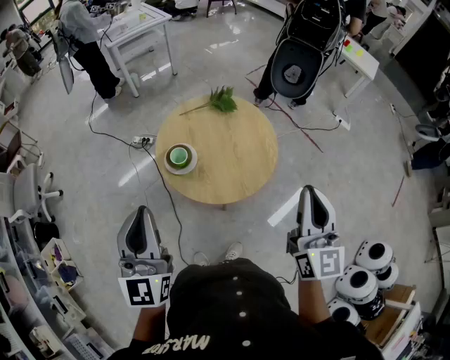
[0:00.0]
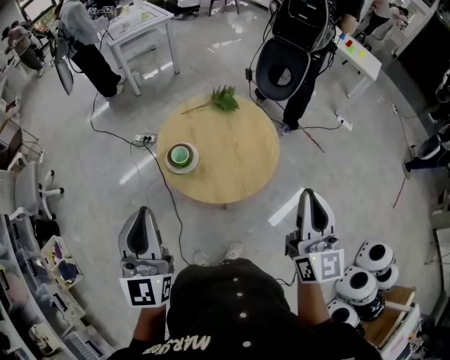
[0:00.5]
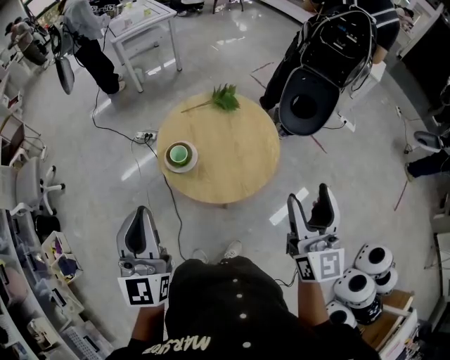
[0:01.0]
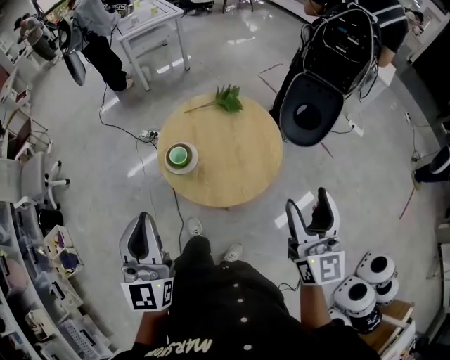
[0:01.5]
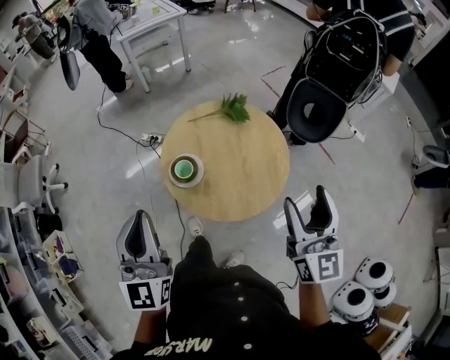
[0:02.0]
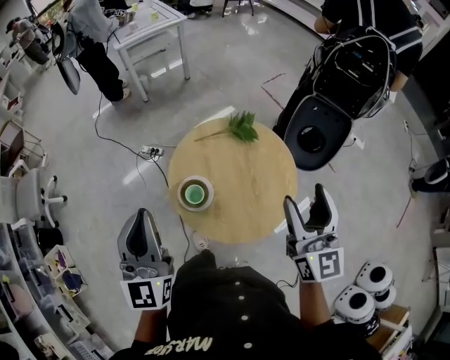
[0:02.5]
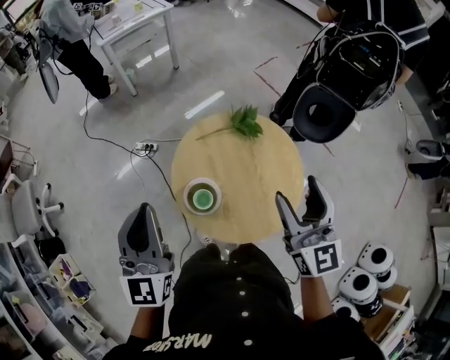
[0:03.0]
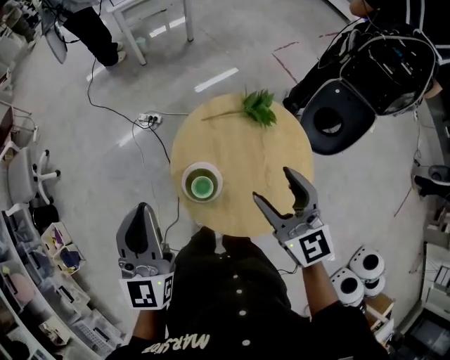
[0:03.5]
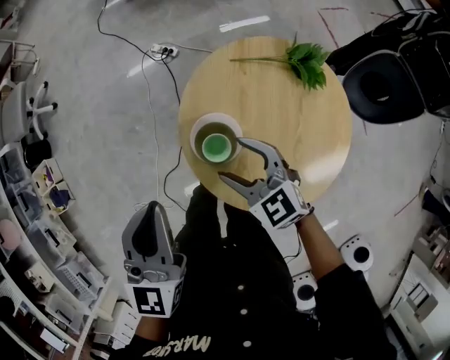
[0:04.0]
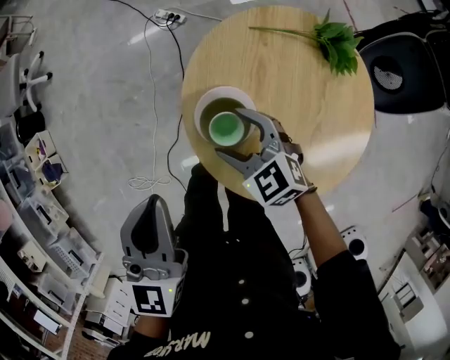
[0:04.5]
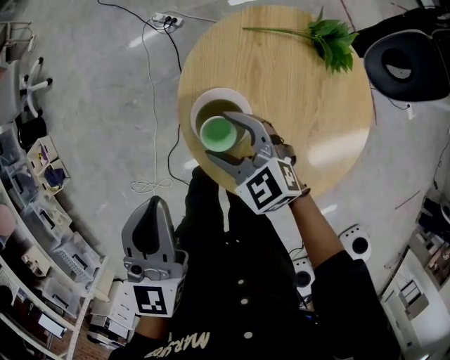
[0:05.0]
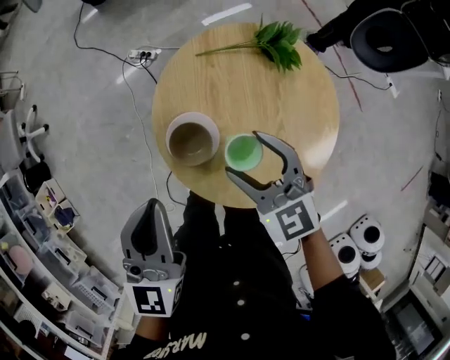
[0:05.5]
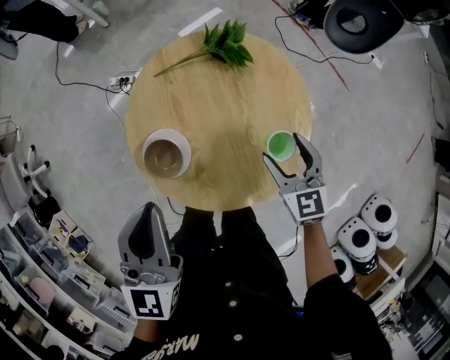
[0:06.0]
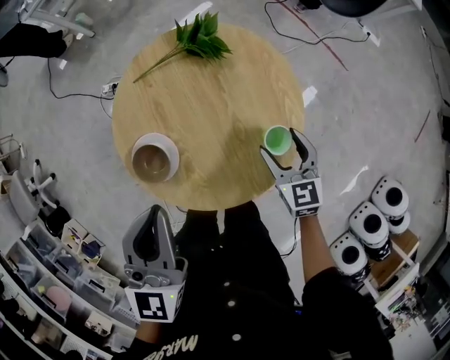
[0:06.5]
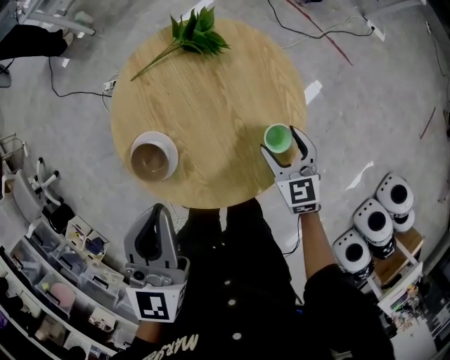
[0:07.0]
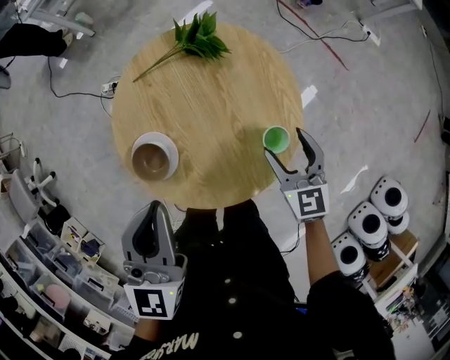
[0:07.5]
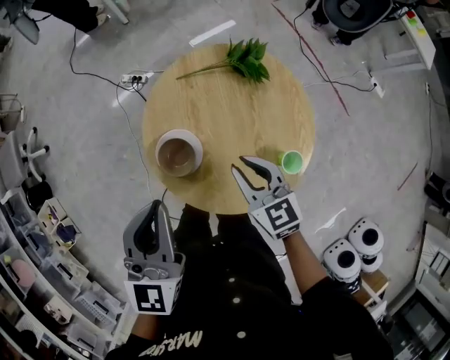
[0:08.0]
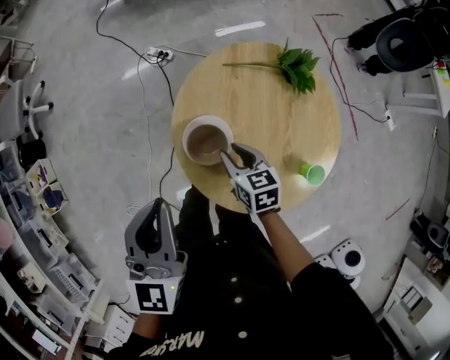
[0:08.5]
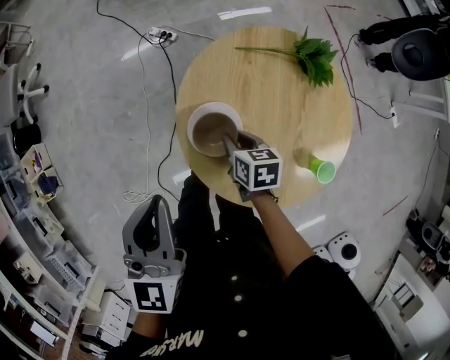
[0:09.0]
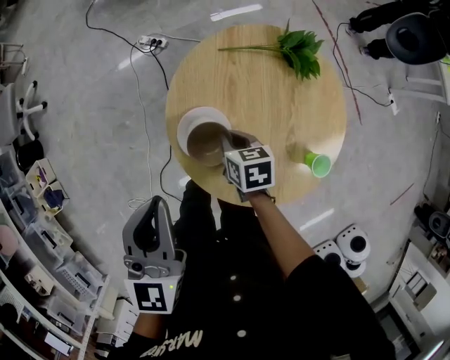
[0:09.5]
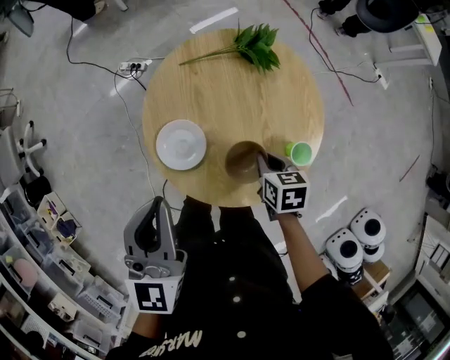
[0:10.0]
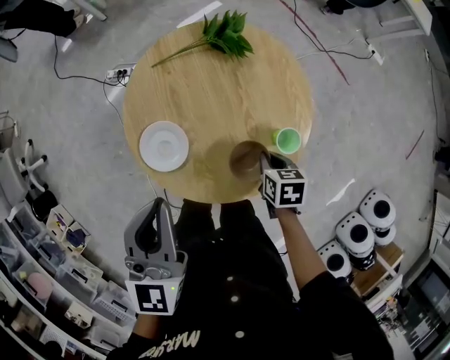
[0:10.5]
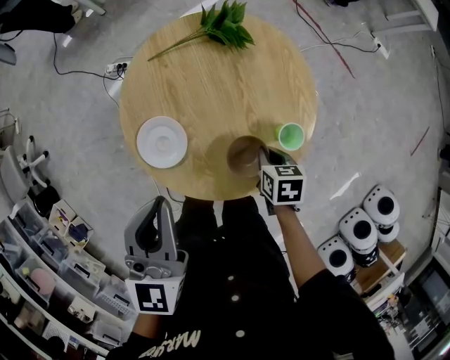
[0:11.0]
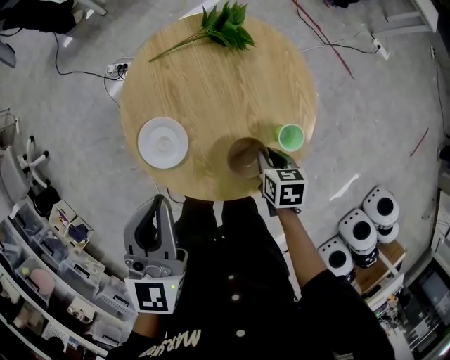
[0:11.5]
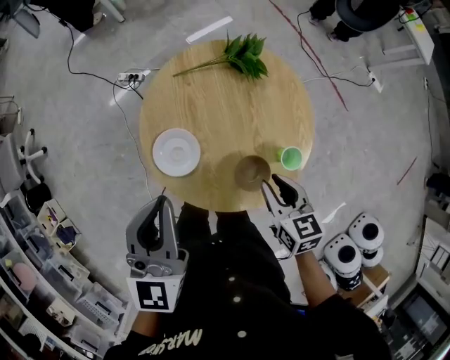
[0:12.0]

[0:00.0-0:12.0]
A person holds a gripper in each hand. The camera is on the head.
0:00.0 to 0:02.0: The two grippers go about 10 cm forward. The right gripper opens.
0:02.0 to 0:04.0: The left gripper changes place by roughly 20 cm, and changes its angle by roughly 20 degrees; the right gripper changes place by approximately 40 cm, and tilts its fingers some 40 degrees downward.
0:04.0 to 0:06.0: The left gripper moves approximately 15 cm, and rotates some 20 degrees, while the right gripper swings up and down, some 10 cm each way, with 2 reversals, and turns by about 50 degrees.
0:06.0 to 0:08.0: The left gripper goes to the right and returns, some 5 cm each way, while the right gripper travels to the left by approximately 15 cm, changes its angle by some 20 degrees, and closes up.
0:08.0 to 0:10.0: The right gripper shifts approximately 10 cm downward, reaches some 10 cm to the left, then returns, and turns by approximately 40 degrees. The left gripper reaches roughly 10 cm to the left, then returns.
0:10.0 to 0:12.0: The right gripper shifts some 10 cm upward.

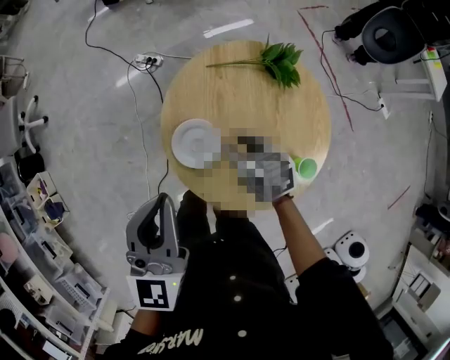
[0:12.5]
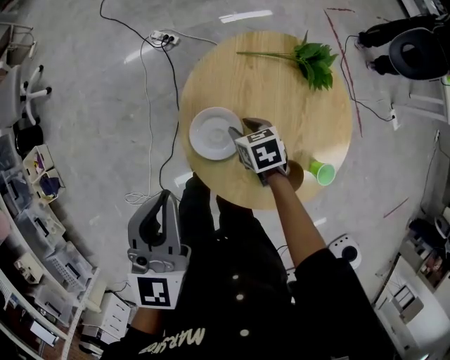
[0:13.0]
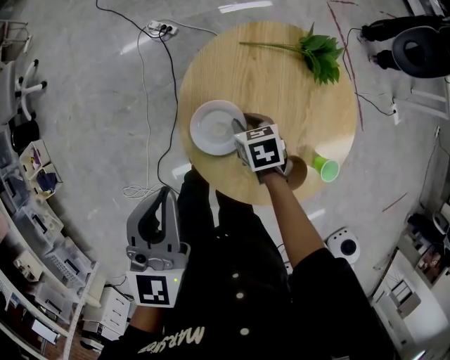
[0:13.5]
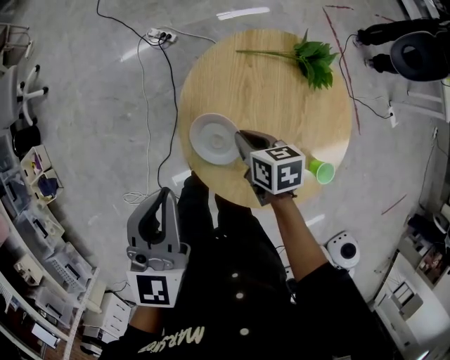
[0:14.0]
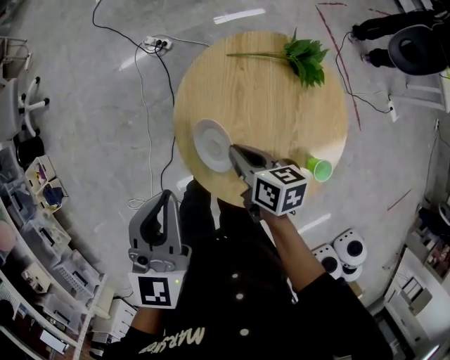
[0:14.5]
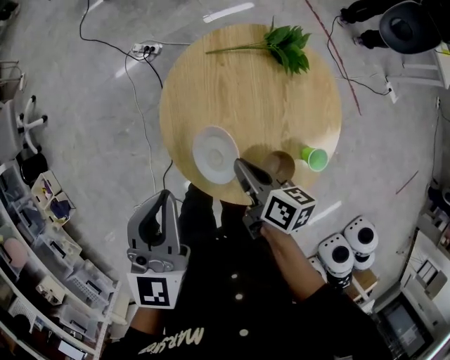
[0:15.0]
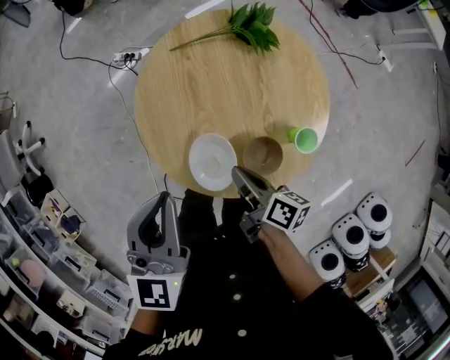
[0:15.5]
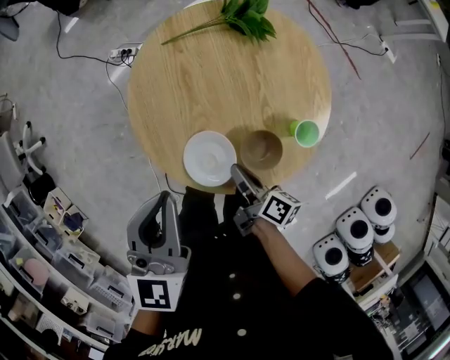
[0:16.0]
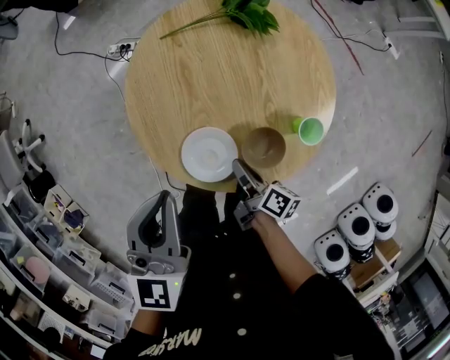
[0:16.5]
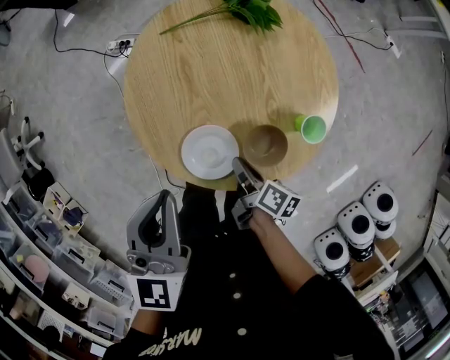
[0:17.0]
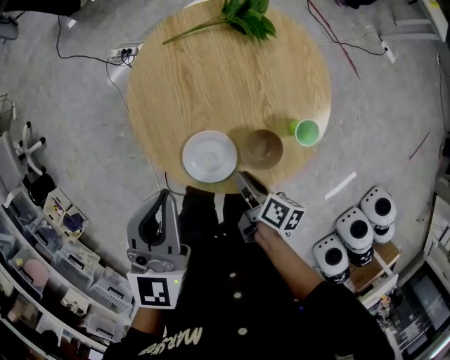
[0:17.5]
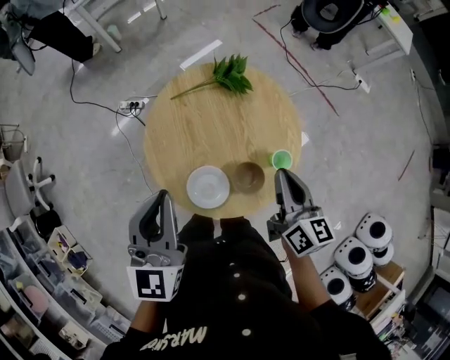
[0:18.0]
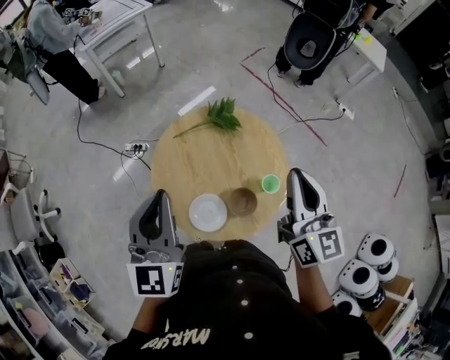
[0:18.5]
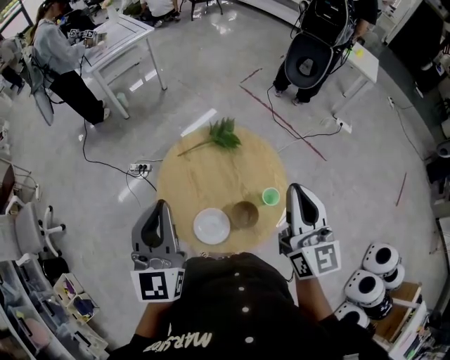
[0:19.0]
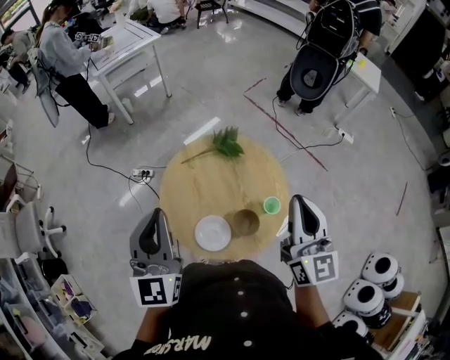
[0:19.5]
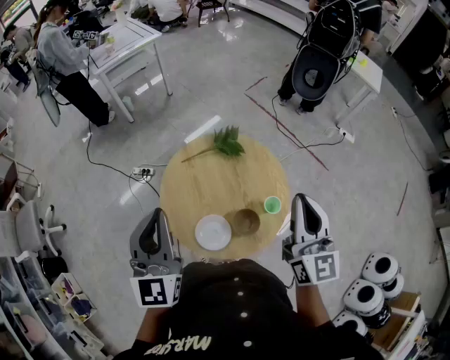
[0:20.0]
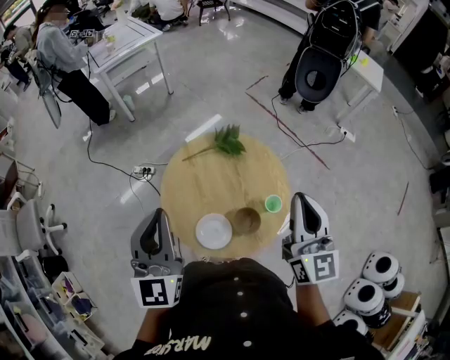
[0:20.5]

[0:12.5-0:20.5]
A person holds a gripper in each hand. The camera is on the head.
0:12.5 to 0:14.5: The right gripper goes downward and returns, roughly 10 cm each way, and turns by roughly 20 degrees.
0:14.5 to 0:16.5: The right gripper goes some 20 cm backward, downward and to the right, and rolls clockwise, seen from behind, by roughly 40 degrees, while the left gripper goes some 10 cm to the right.
0:16.5 to 0:18.5: The right gripper shifts roughly 40 cm upward, and rolls counterclockwise, seen from behind, by roughly 60 degrees. Meanwhile the left gripper is displaced upward by approximately 20 cm, and swivels some 20 degrees.
0:18.5 to 0:20.5: The grippers make only small movements.

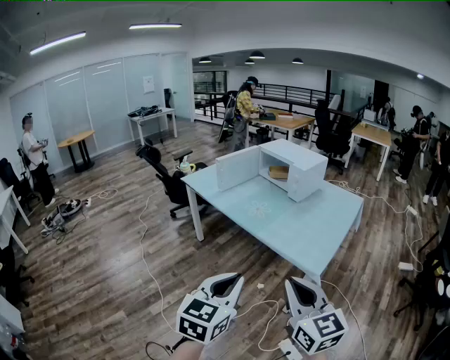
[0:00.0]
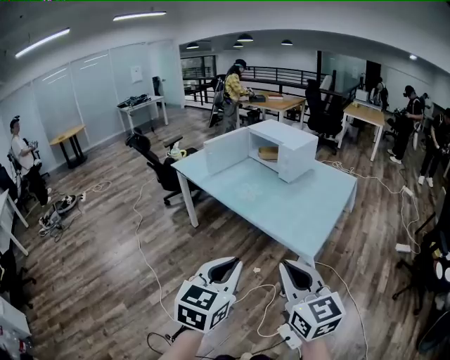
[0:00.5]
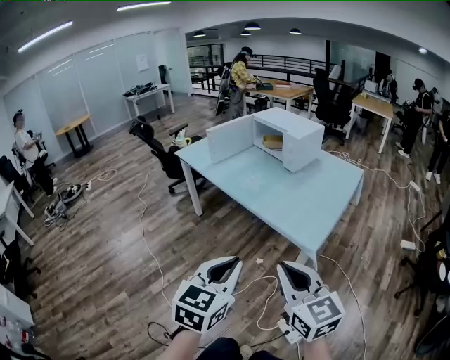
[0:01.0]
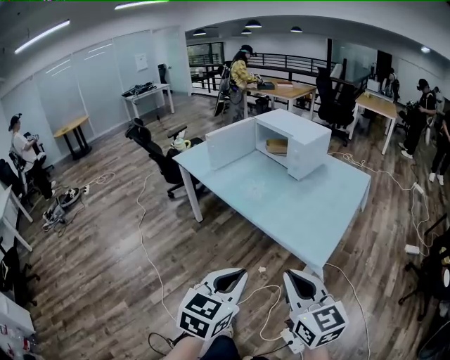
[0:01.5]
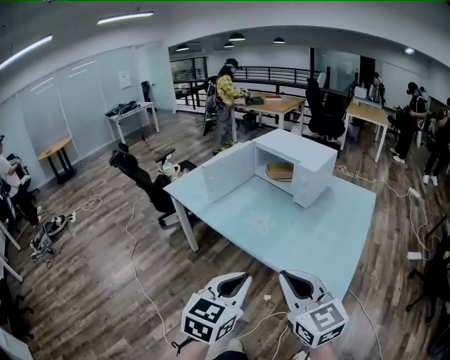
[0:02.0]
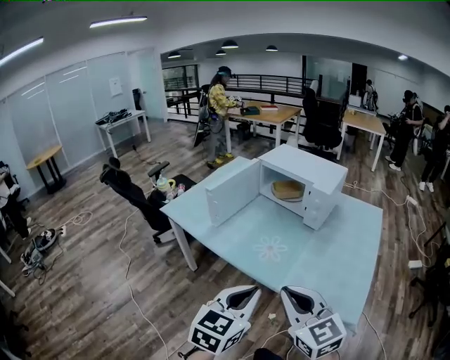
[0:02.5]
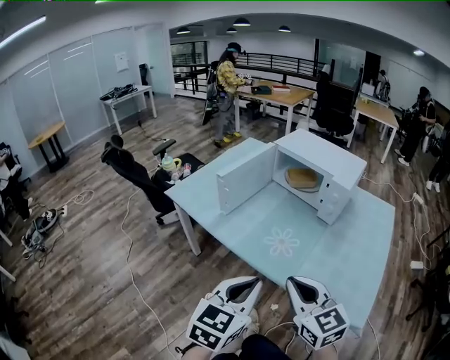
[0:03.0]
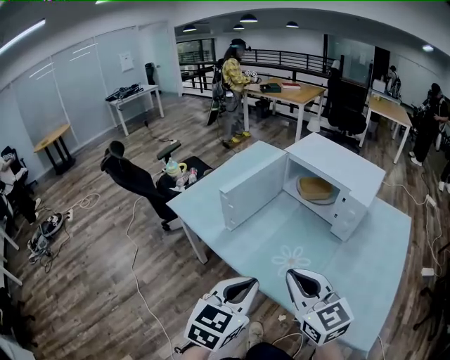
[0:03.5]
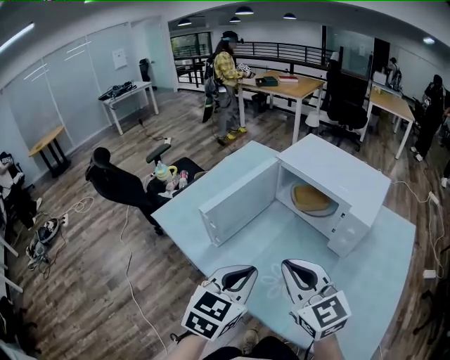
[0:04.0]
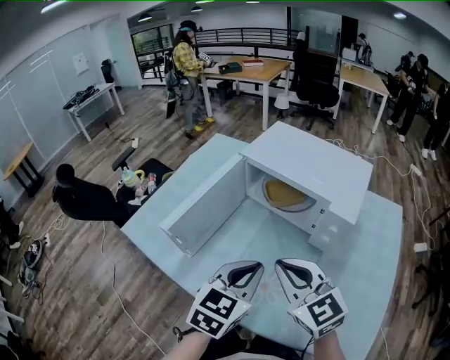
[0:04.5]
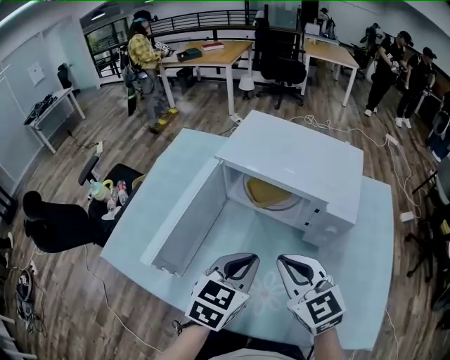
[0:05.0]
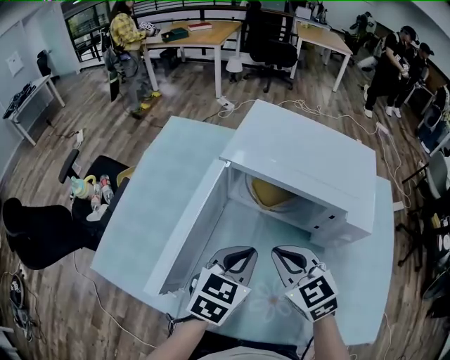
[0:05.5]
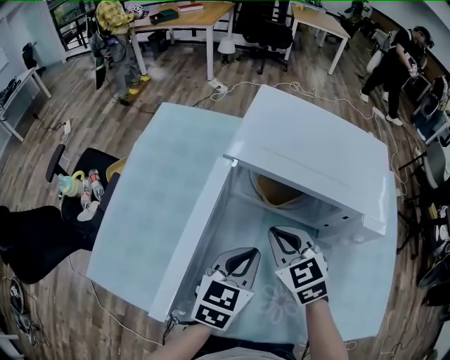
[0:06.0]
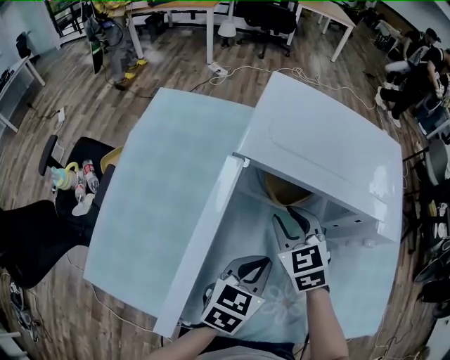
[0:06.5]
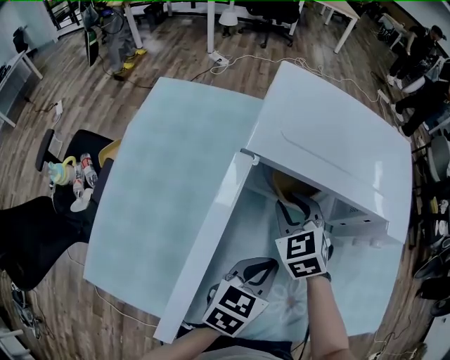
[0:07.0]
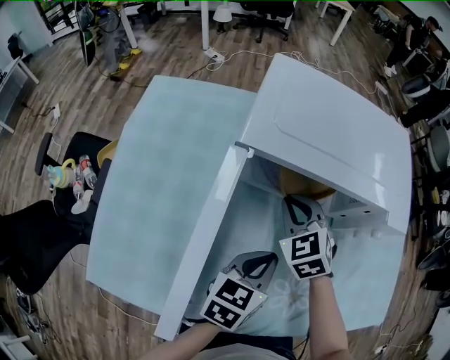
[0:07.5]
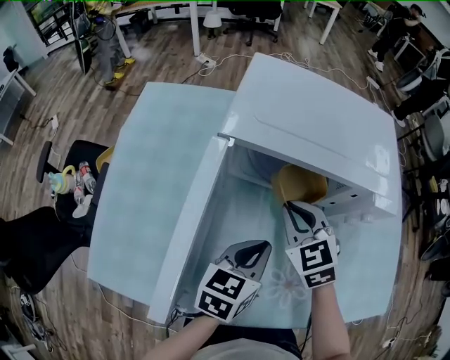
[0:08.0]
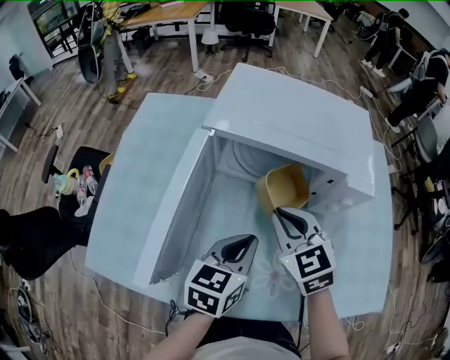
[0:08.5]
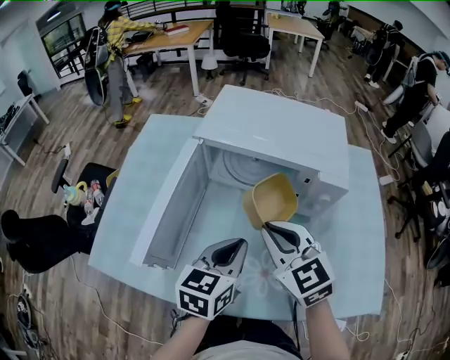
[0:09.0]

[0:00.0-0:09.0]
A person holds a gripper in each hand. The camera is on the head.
0:00.0 to 0:02.0: The two grippers go some 25 cm forward.
0:02.0 to 0:04.5: Both grippers are carried forward, roughly 40 cm.
0:04.5 to 0:07.0: The right gripper shifts by about 35 cm, swivels roughly 50 degrees, and opens up. Meanwhile the left gripper goes some 15 cm downward, and changes its angle by some 30 degrees.
0:07.0 to 0:09.0: The left gripper moves upward and backward, about 10 cm; the right gripper shifts approximately 25 cm backward, upward and to the right, changes its angle by about 30 degrees, and closes up.
